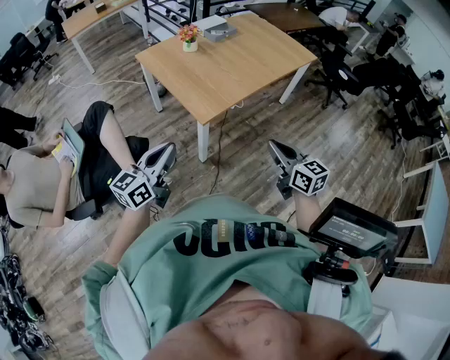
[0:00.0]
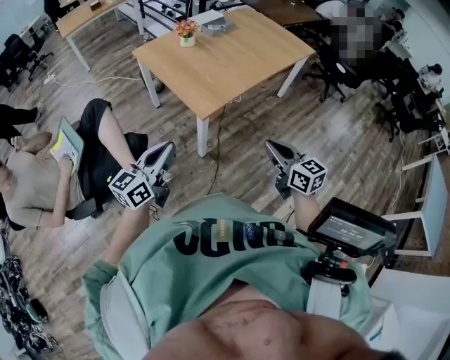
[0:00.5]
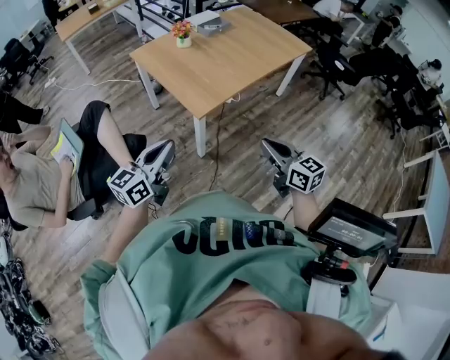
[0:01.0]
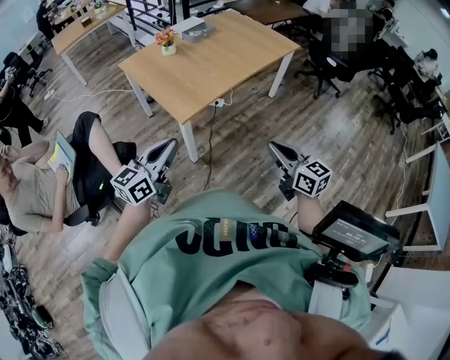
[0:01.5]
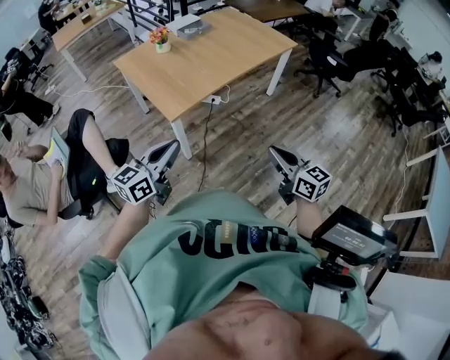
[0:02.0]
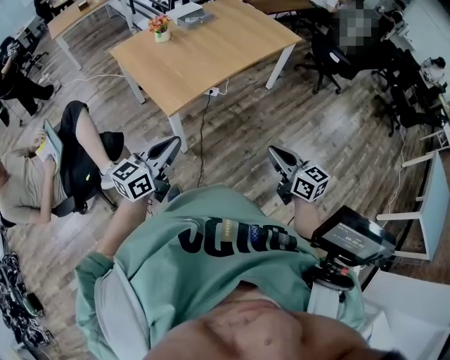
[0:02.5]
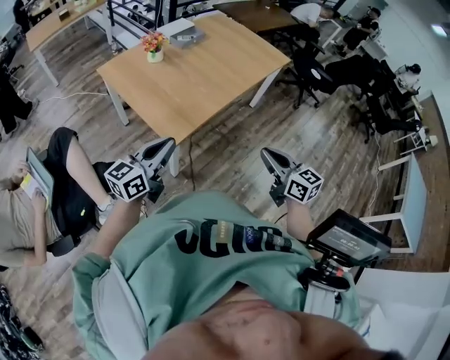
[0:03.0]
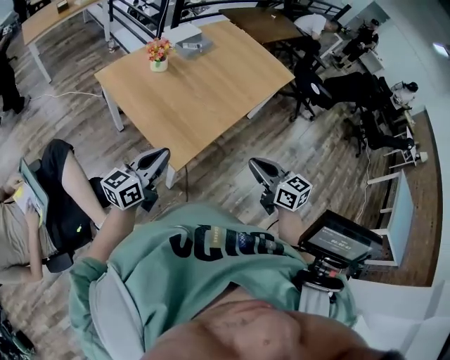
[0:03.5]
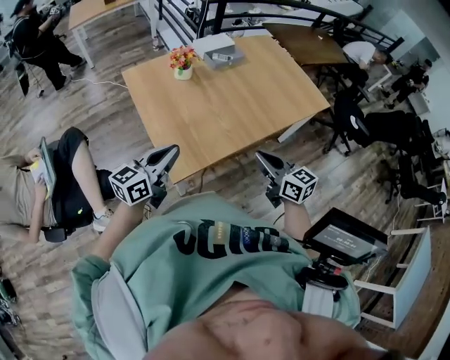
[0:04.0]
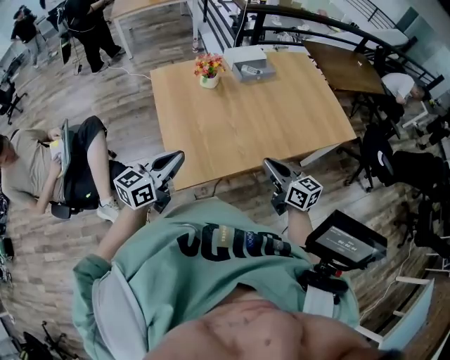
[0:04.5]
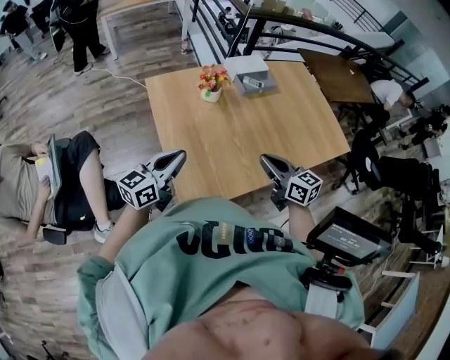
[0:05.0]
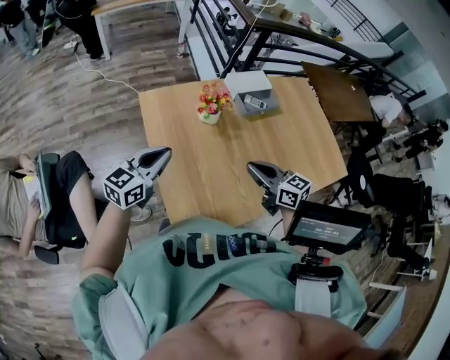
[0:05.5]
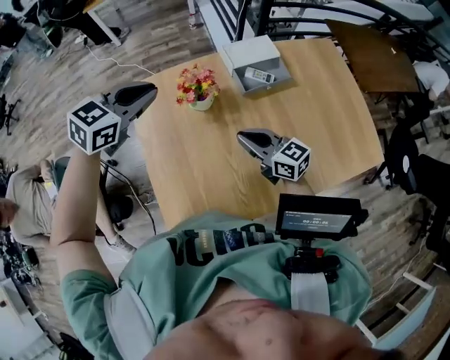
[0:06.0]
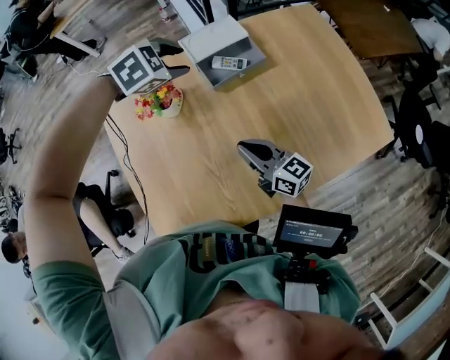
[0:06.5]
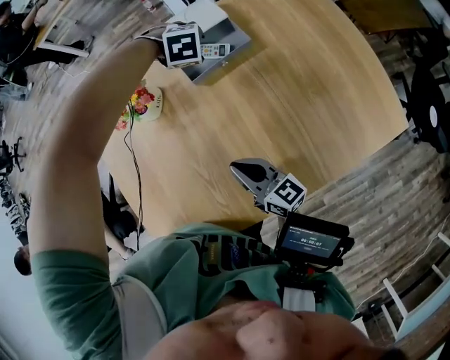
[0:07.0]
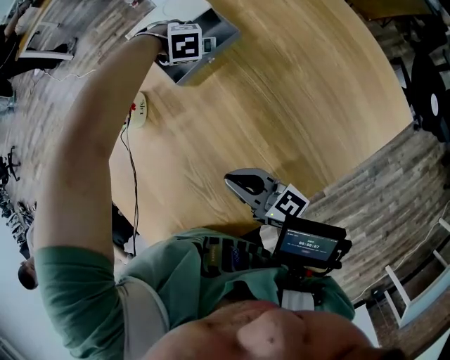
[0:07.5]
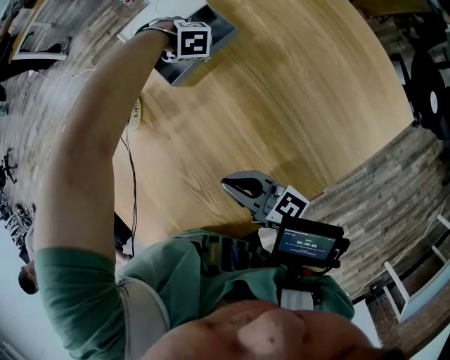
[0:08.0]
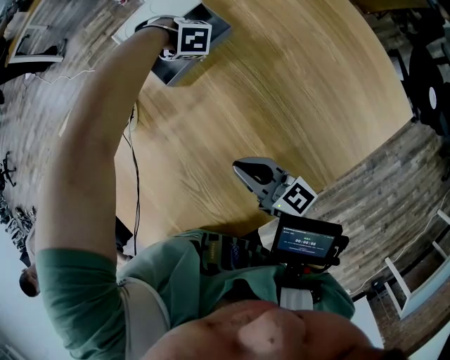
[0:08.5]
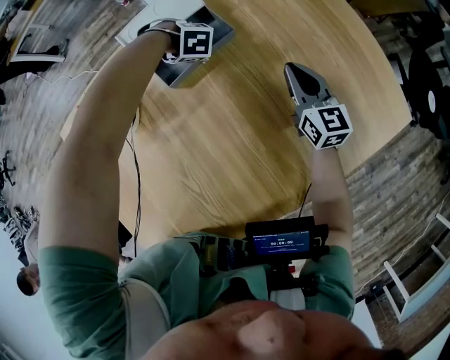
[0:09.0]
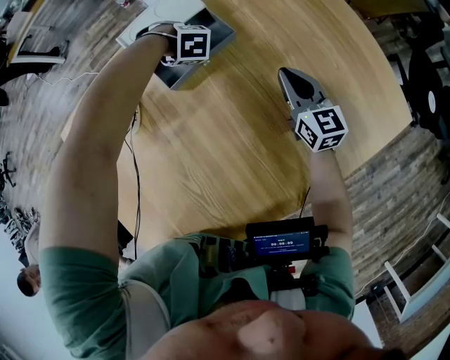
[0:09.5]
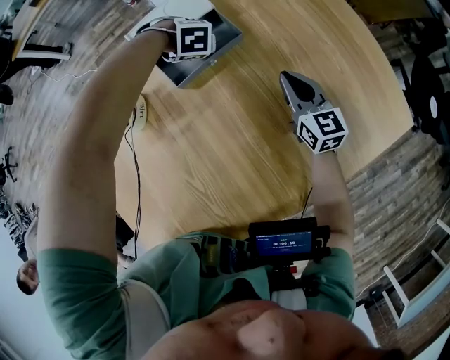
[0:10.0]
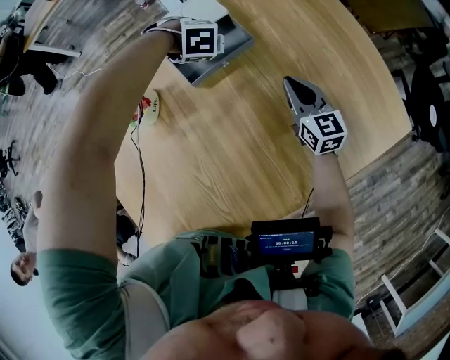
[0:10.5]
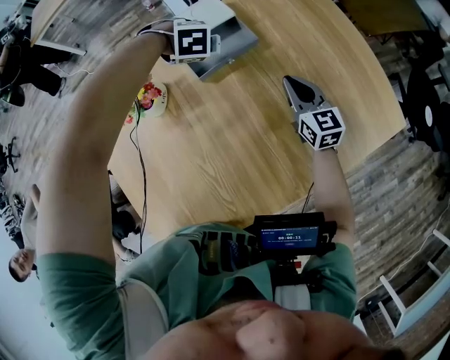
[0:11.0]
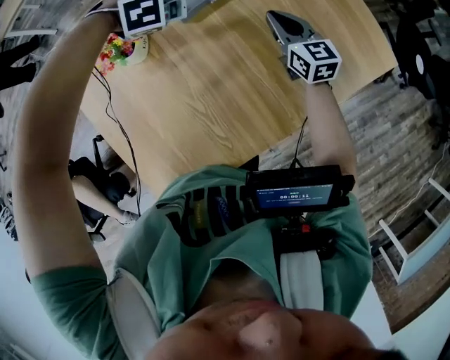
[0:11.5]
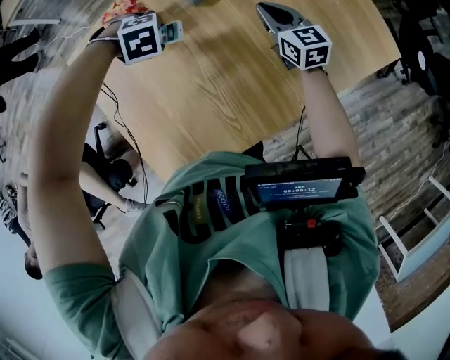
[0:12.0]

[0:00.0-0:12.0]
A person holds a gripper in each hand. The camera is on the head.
0:00.0 to 0:02.0: Both grippers move to the right, roughly 20 cm.
0:02.0 to 0:04.0: The two grippers go approximately 40 cm forward.
0:04.0 to 0:06.0: The pair of grippers is taken forward, about 50 cm. The right gripper swivels approximately 30 degrees. Meanwhile the left gripper tips its fingers downward by some 30 degrees.
0:06.0 to 0:08.0: The left gripper travels downward by approximately 50 cm, points its fingers some 50 degrees further downward, and opens. The right gripper moves downward, roughly 15 cm, and swivels some 20 degrees.
0:08.0 to 0:10.0: The right gripper changes place by approximately 25 cm, and changes its angle by about 30 degrees.
0:10.0 to 0:12.0: The left gripper changes place by approximately 30 cm; the right gripper moves roughly 15 cm.

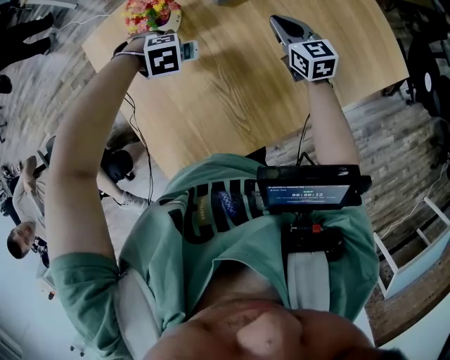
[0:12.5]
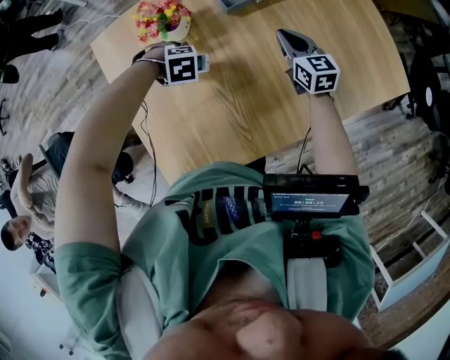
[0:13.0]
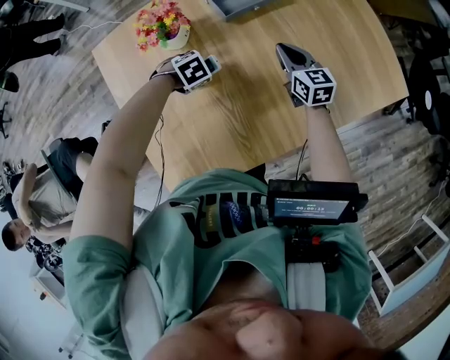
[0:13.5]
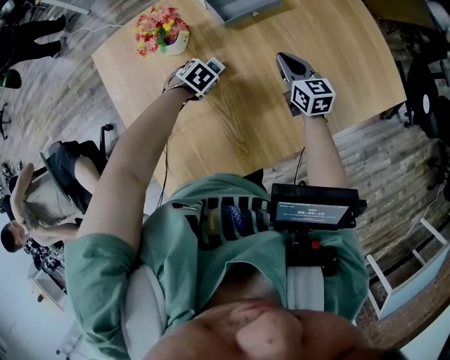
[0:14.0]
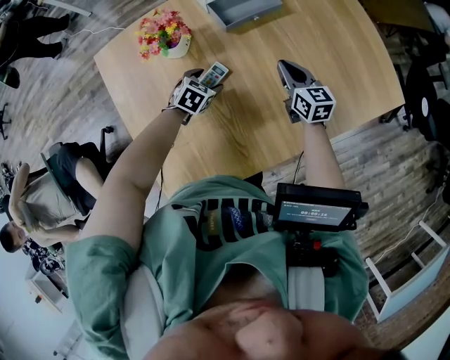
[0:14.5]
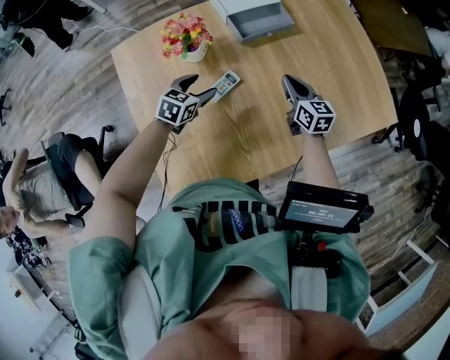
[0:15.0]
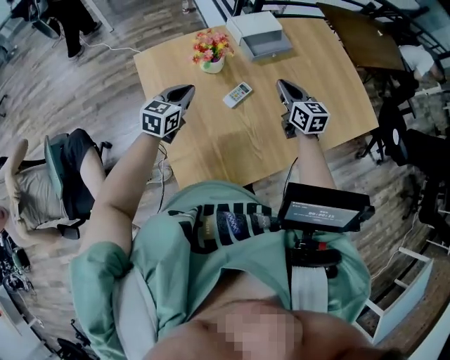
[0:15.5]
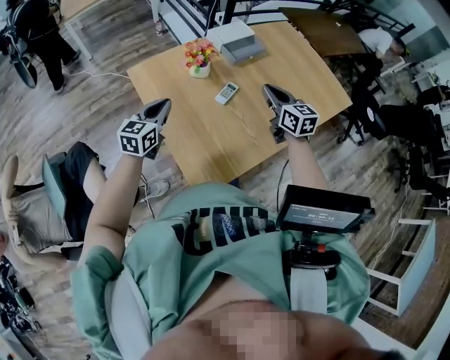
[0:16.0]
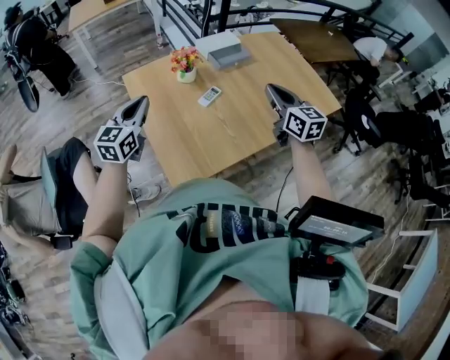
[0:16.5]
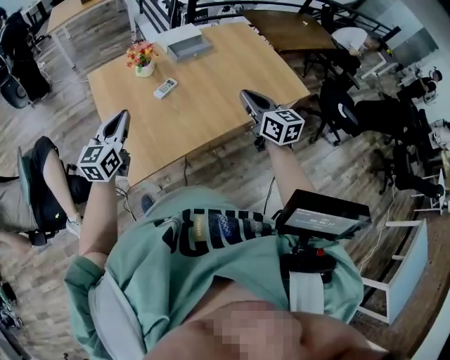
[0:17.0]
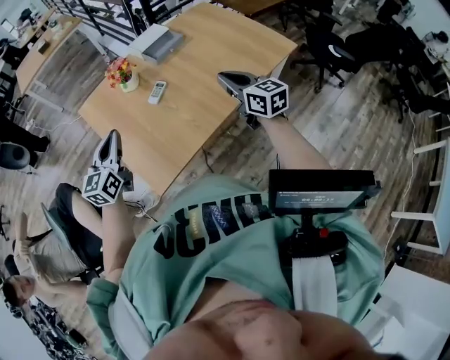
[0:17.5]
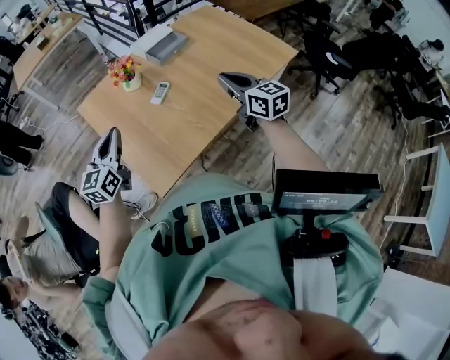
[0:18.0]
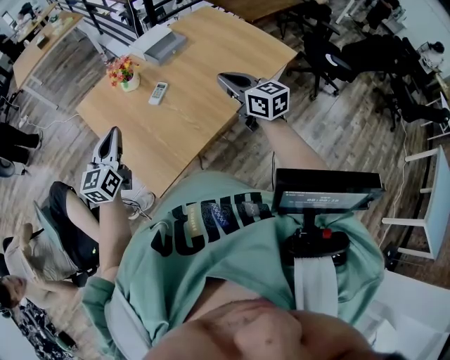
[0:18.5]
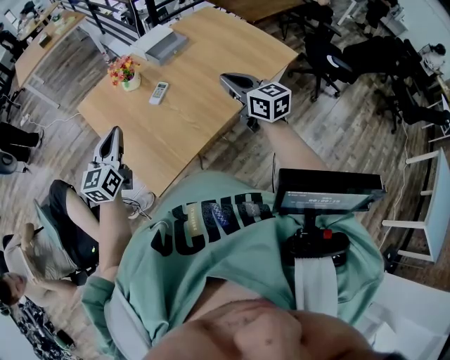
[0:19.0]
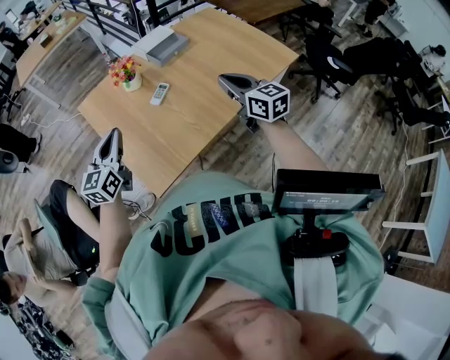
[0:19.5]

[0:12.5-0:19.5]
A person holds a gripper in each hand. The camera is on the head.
0:12.5 to 0:14.5: The left gripper heads downward, covering some 10 cm, and rotates around the line of its fingers by roughly 50 degrees, counterclockwise from behind.
0:14.5 to 0:16.0: The right gripper travels upward, backward and to the left by about 35 cm. Meanwhile the left gripper heads upward, to the left and backward, covering roughly 40 cm, angles its fingers upward, by some 40 degrees, and closes.
0:16.0 to 0:17.5: The right gripper goes about 25 cm to the right and backward. The left gripper heads backward, to the right and upward, covering roughly 20 cm.
0:17.5 to 0:19.5: The grippers make only small movements.

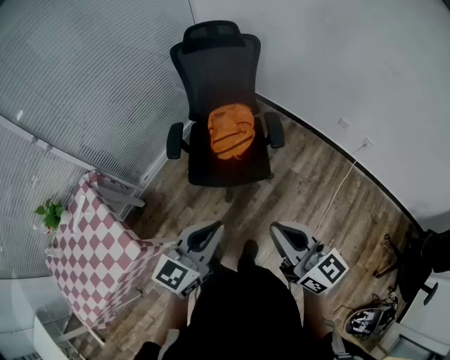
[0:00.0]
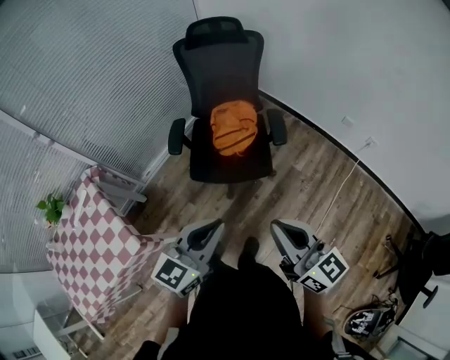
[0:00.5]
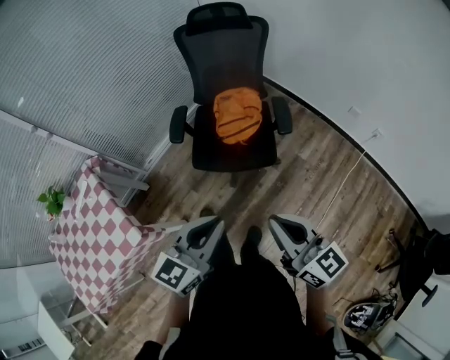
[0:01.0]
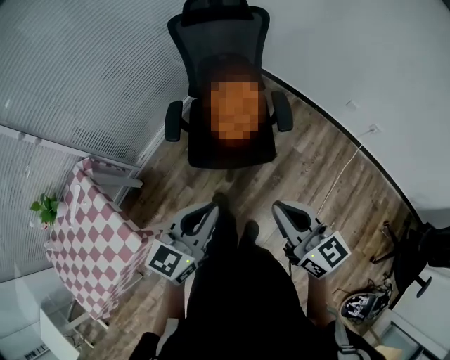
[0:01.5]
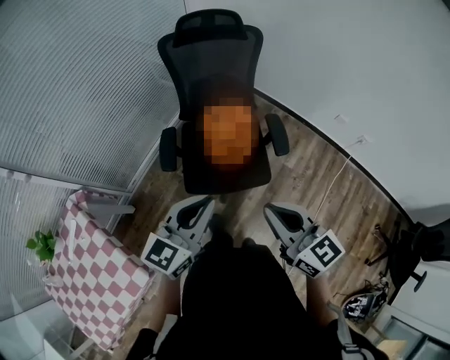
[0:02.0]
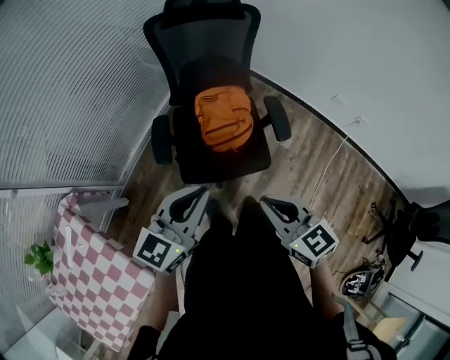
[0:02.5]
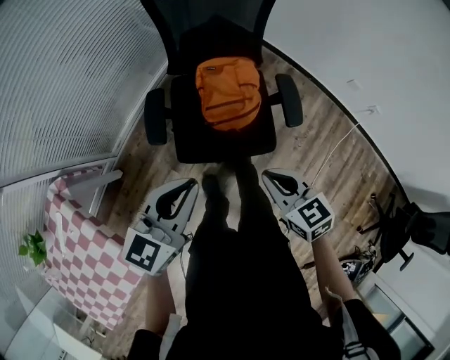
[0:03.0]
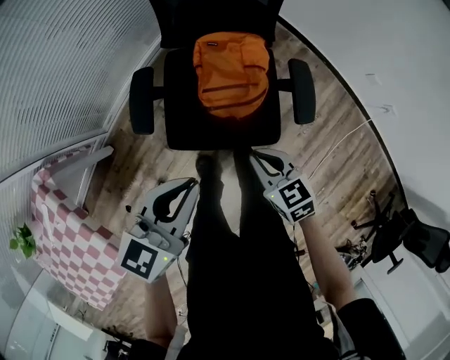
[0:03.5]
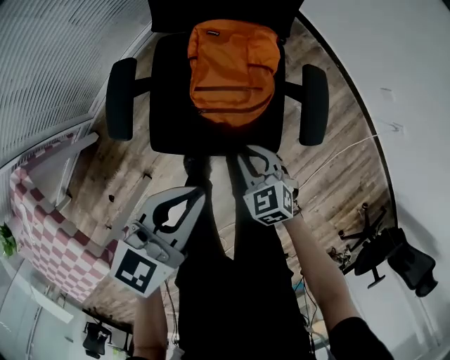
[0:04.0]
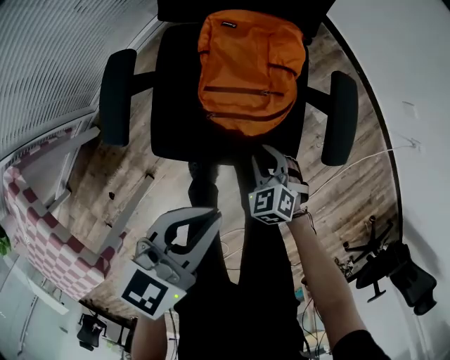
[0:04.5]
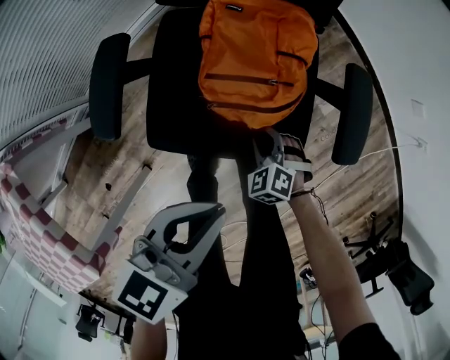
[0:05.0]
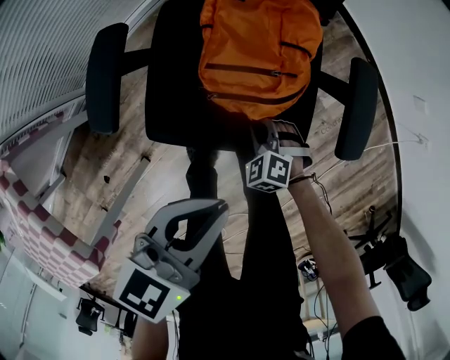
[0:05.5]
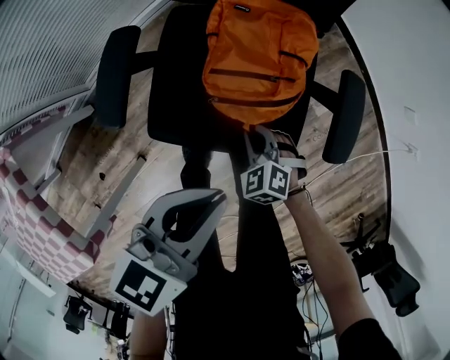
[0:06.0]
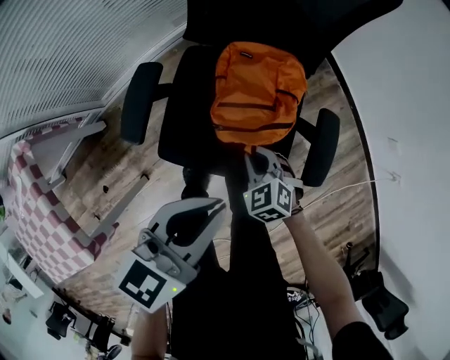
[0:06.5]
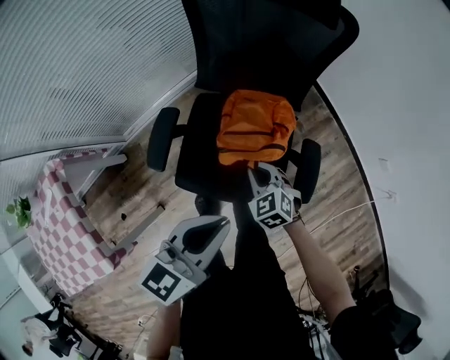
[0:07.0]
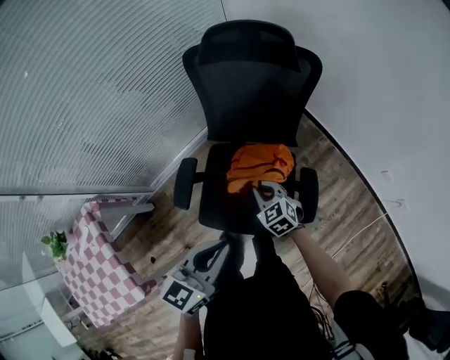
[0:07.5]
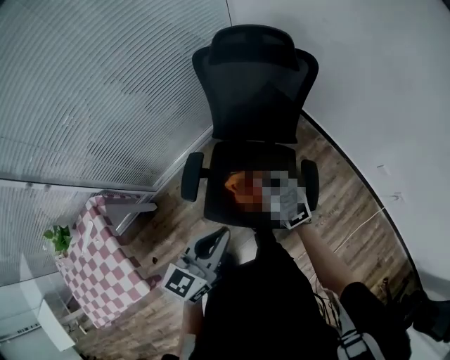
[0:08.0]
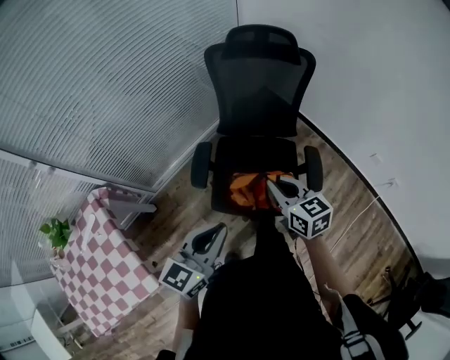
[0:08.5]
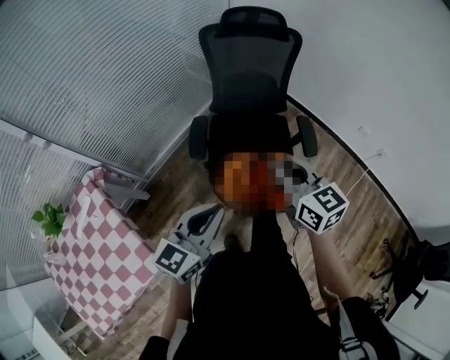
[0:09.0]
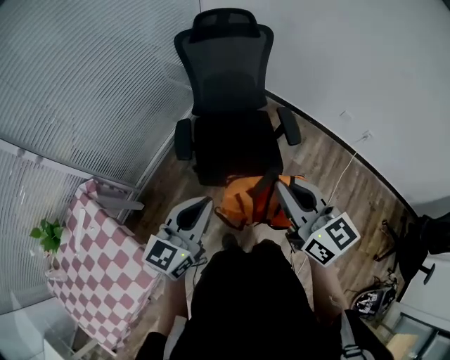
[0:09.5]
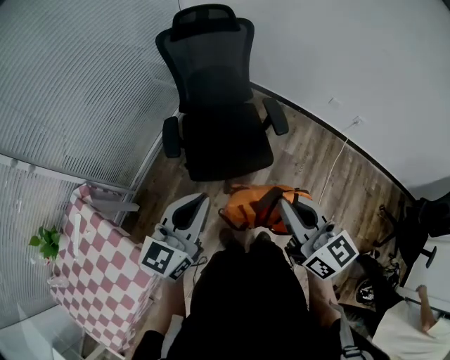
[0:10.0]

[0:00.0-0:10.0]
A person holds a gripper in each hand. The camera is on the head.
0:00.0 to 0:02.0: The grippers both shift forward and to the left by about 20 cm.
0:02.0 to 0:04.0: The left gripper goes roughly 30 cm downward and forward, and changes its angle by about 20 degrees. Meanwhile the right gripper goes some 50 cm downward and forward, and points its fingers approximately 40 degrees further downward.
0:04.0 to 0:06.0: The left gripper goes about 5 cm downward, while the right gripper travels downward by approximately 10 cm, and changes its angle by some 20 degrees.
0:06.0 to 0:08.0: Both grippers travel together upward, some 30 cm. The left gripper changes its angle by roughly 20 degrees. The right gripper changes its angle by approximately 40 degrees.
0:08.0 to 0:10.0: The right gripper moves backward and upward, approximately 50 cm, and swivels approximately 40 degrees. The left gripper shifts approximately 25 cm backward and to the left, and turns by some 20 degrees.
